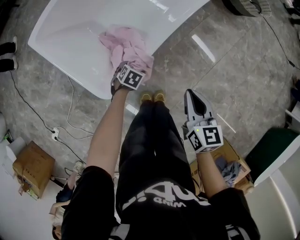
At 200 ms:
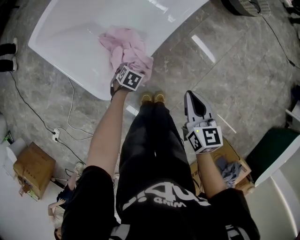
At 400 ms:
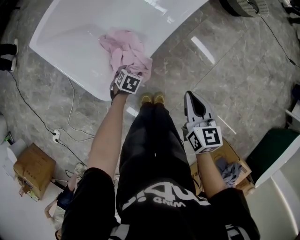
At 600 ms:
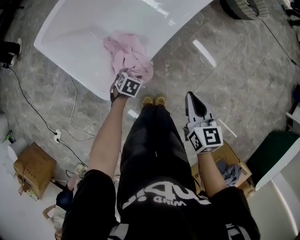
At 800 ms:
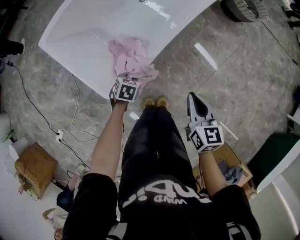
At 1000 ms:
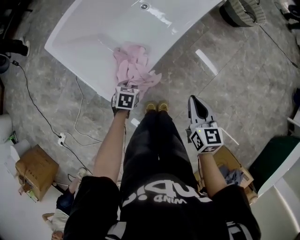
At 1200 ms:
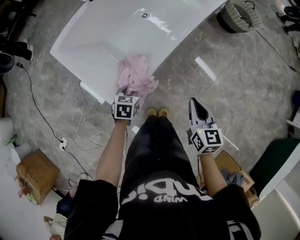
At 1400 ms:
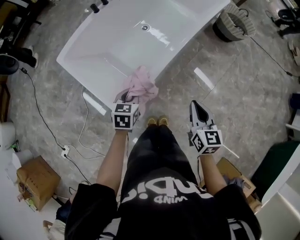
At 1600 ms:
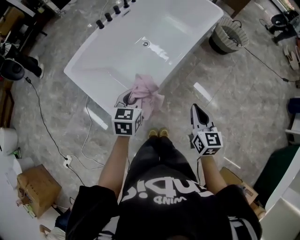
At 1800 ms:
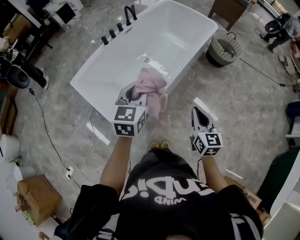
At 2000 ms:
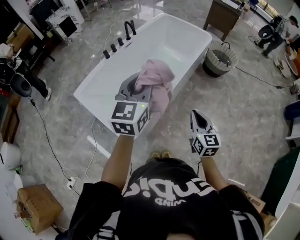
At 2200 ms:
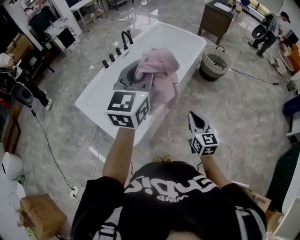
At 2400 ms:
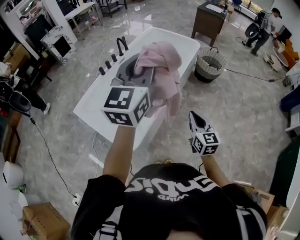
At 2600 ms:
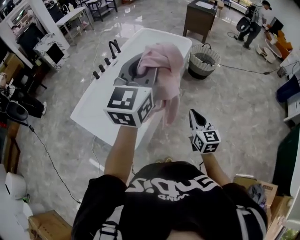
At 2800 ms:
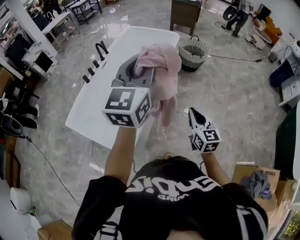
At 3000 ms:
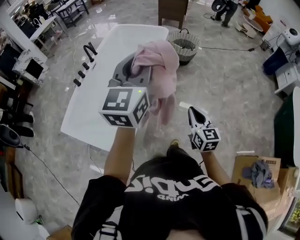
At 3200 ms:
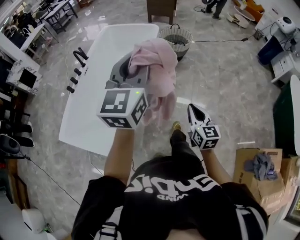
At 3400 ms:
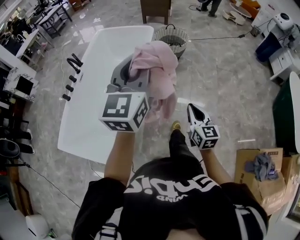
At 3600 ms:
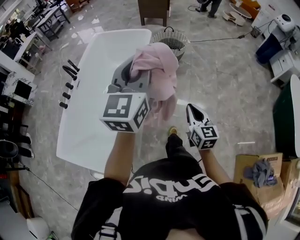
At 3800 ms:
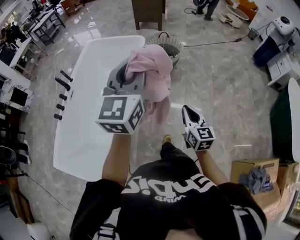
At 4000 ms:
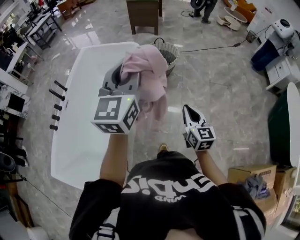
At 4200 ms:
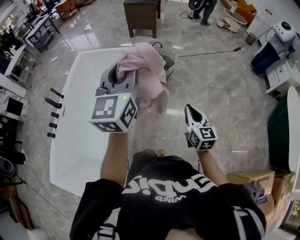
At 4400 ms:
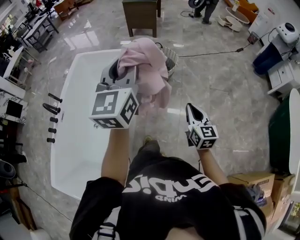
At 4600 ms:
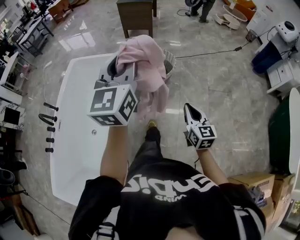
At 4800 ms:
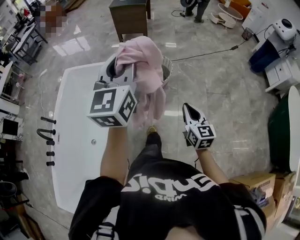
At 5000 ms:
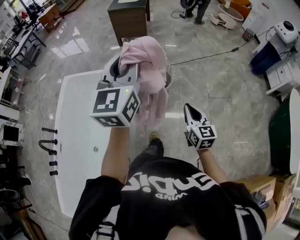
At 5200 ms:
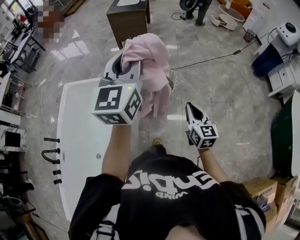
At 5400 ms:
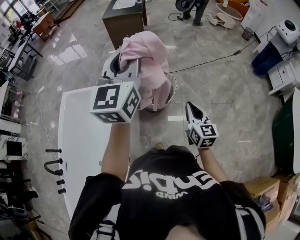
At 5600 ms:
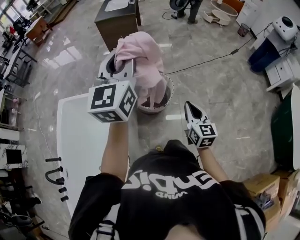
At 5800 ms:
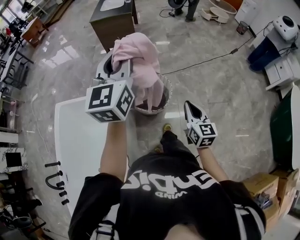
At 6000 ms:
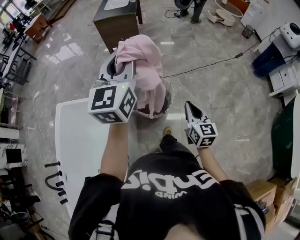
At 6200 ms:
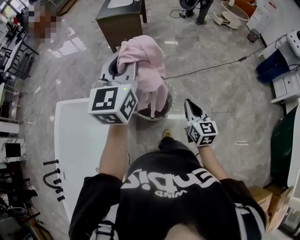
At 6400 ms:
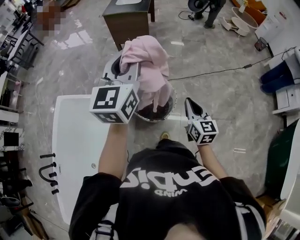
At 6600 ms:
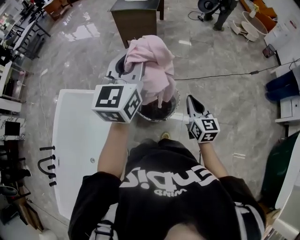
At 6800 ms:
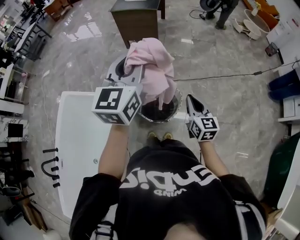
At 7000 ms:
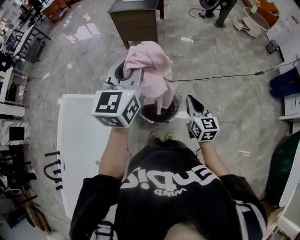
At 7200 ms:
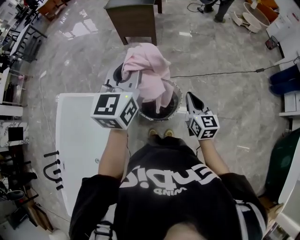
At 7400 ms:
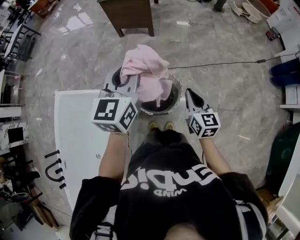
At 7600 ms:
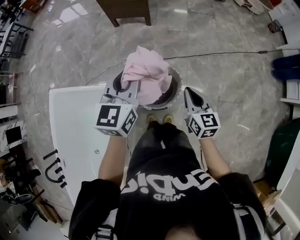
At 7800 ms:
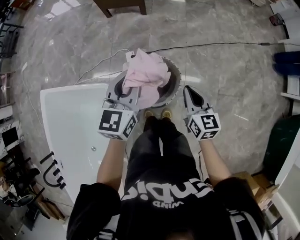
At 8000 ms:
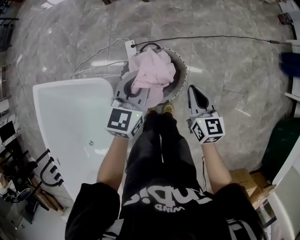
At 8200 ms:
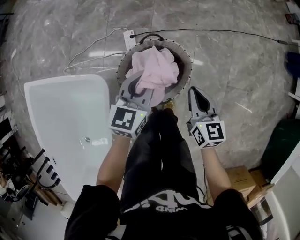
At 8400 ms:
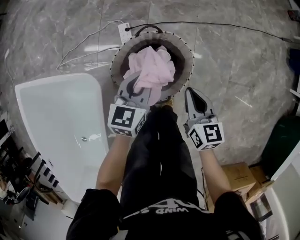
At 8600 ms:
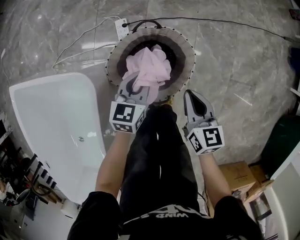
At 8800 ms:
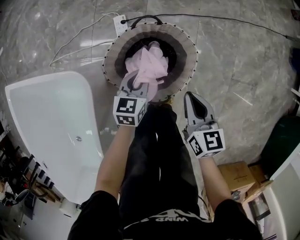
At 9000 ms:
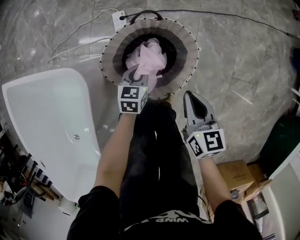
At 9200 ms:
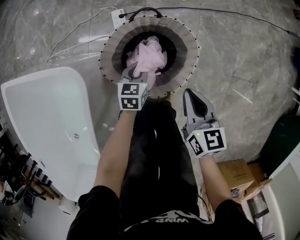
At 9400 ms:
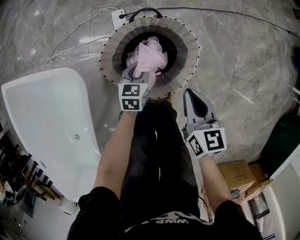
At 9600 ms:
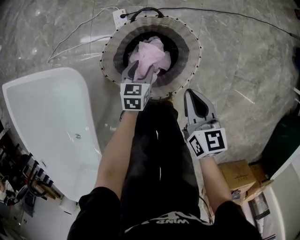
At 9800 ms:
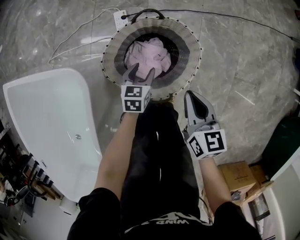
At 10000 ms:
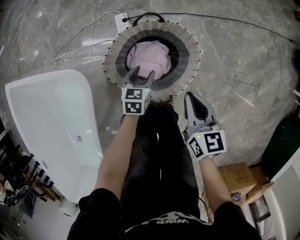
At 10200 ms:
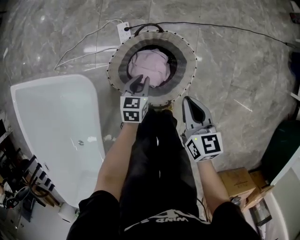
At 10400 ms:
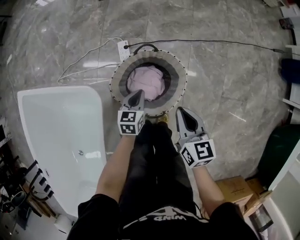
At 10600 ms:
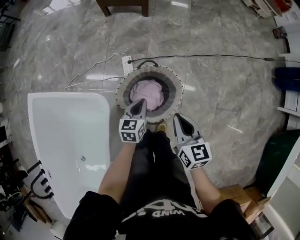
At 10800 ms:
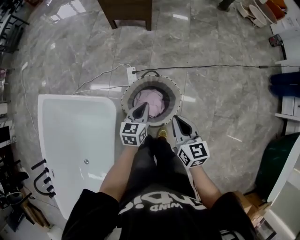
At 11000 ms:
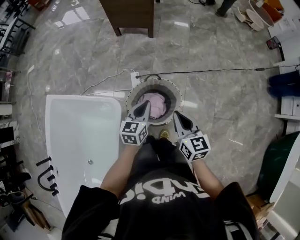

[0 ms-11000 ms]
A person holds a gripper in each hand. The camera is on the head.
0 ms to 1600 ms: The right gripper shifts some 15 cm upward. The left gripper heads upward, covering roughly 40 cm, points its fingers approximately 40 degrees further upward, and closes.
1600 ms to 3200 ms: The left gripper shifts about 35 cm upward, and points its fingers roughly 40 degrees further upward. The right gripper moves some 15 cm, and changes its angle by some 30 degrees.
3200 ms to 4800 ms: The two grippers travel together, forward, about 60 cm.
4800 ms to 6200 ms: The grippers both shift forward by some 40 cm.
6200 ms to 7800 ms: The left gripper travels downward and forward by some 30 cm, and changes its angle by roughly 20 degrees; the right gripper heads forward and downward, covering approximately 20 cm.
7800 ms to 9400 ms: The left gripper shifts some 50 cm downward, and rotates roughly 30 degrees. The right gripper goes roughly 25 cm downward.
9400 ms to 11000 ms: Both grippers move upward, about 35 cm. The left gripper opens, then closes once more.

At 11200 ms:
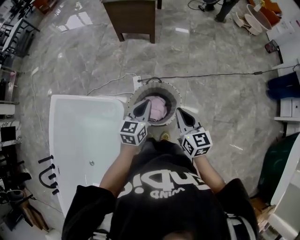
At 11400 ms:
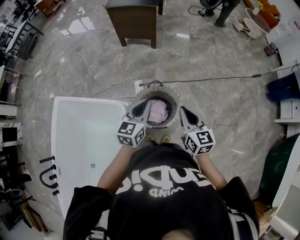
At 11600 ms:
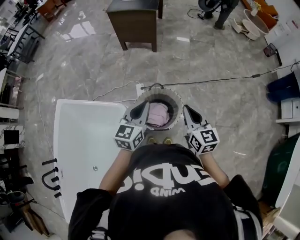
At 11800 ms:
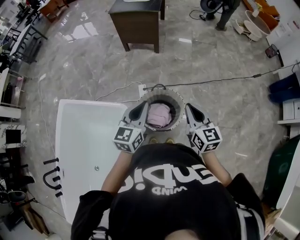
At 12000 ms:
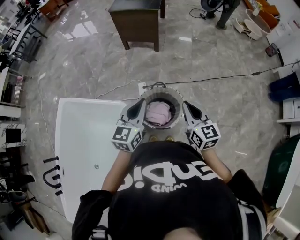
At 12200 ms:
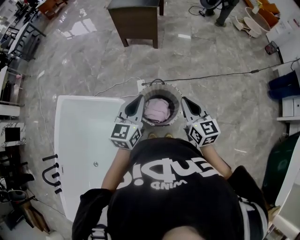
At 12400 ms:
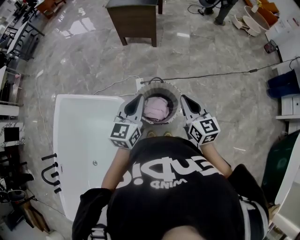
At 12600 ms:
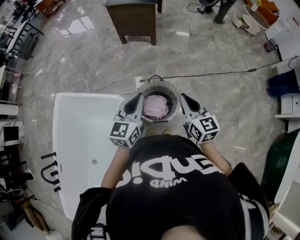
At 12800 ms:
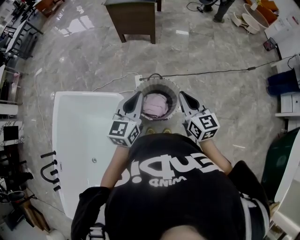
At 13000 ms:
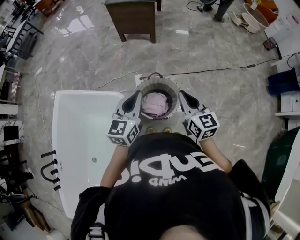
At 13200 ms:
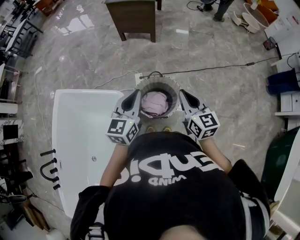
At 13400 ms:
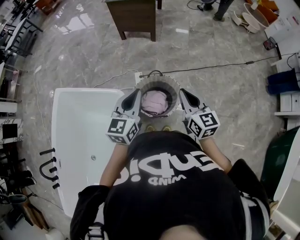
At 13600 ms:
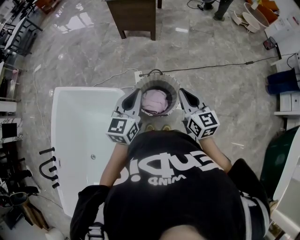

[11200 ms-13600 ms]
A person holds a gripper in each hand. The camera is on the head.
11200 ms to 12400 ms: The right gripper goes about 5 cm upward; the left gripper goes about 10 cm upward.
12400 ms to 13600 ms: The grippers move only a little.

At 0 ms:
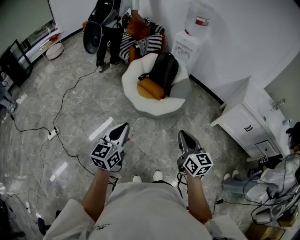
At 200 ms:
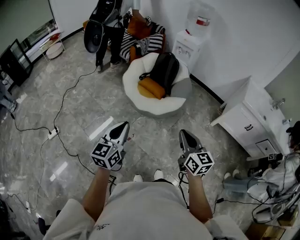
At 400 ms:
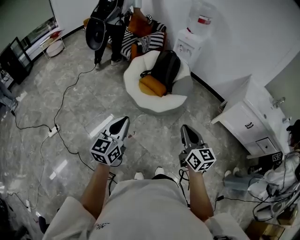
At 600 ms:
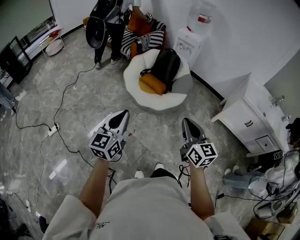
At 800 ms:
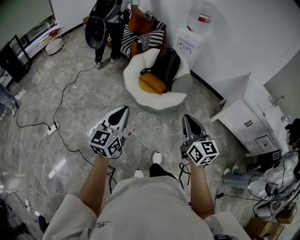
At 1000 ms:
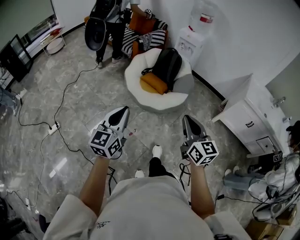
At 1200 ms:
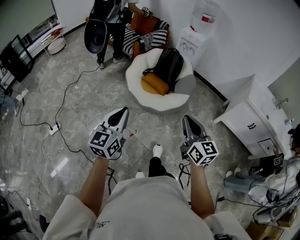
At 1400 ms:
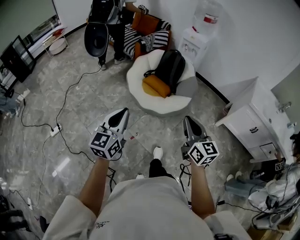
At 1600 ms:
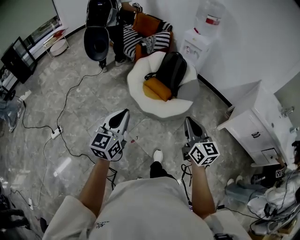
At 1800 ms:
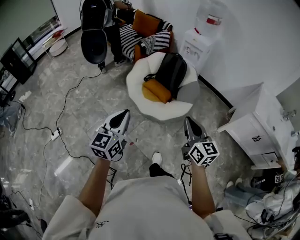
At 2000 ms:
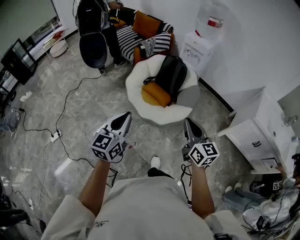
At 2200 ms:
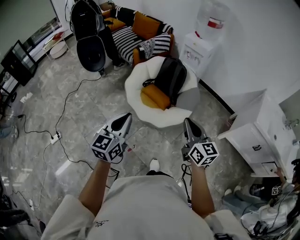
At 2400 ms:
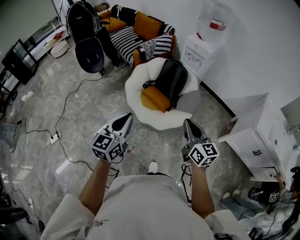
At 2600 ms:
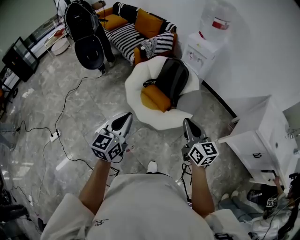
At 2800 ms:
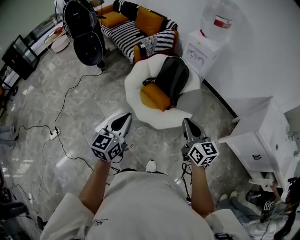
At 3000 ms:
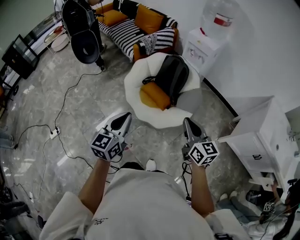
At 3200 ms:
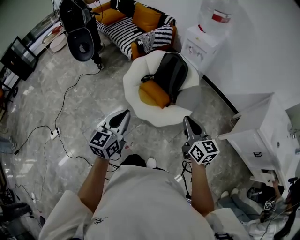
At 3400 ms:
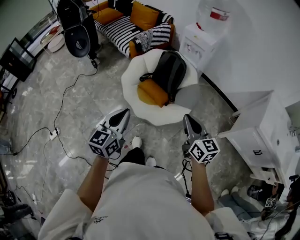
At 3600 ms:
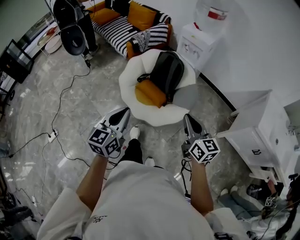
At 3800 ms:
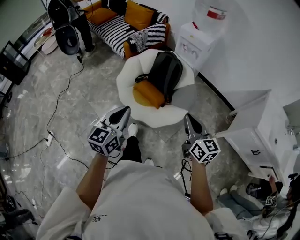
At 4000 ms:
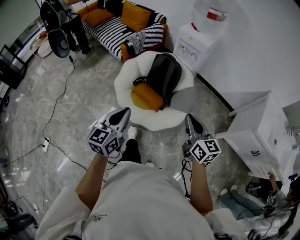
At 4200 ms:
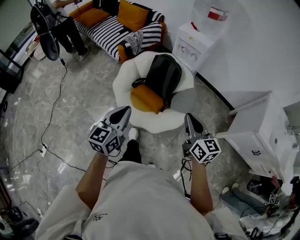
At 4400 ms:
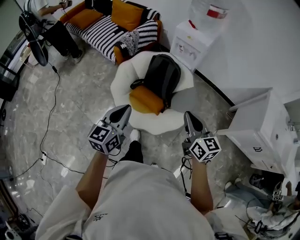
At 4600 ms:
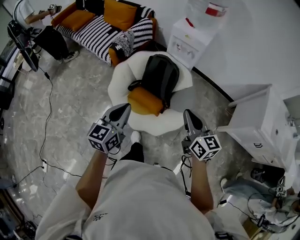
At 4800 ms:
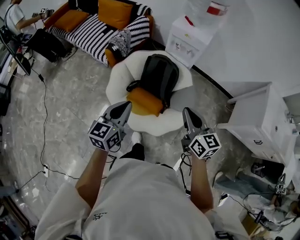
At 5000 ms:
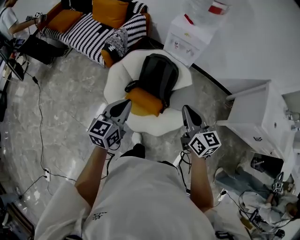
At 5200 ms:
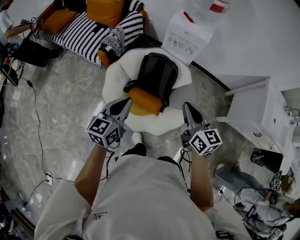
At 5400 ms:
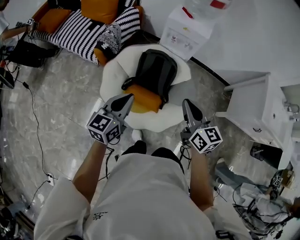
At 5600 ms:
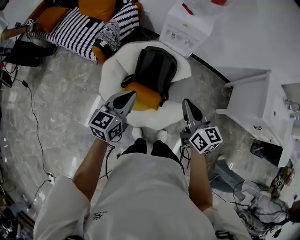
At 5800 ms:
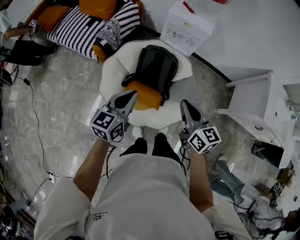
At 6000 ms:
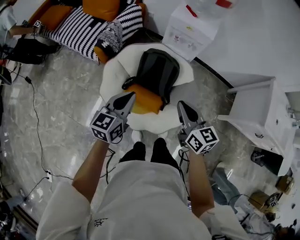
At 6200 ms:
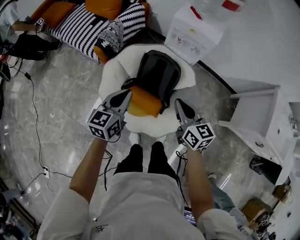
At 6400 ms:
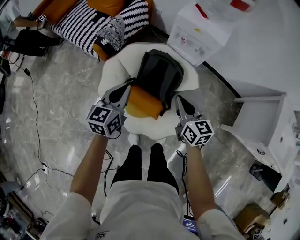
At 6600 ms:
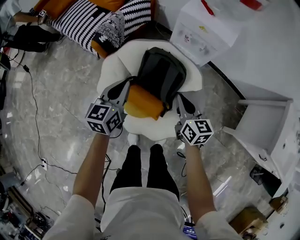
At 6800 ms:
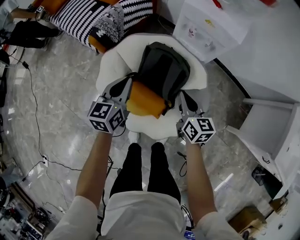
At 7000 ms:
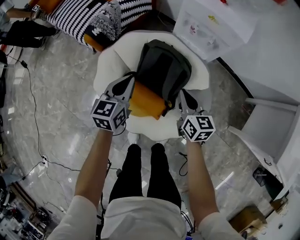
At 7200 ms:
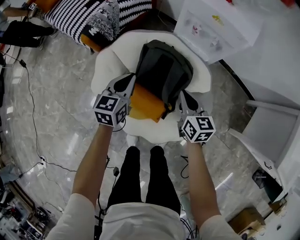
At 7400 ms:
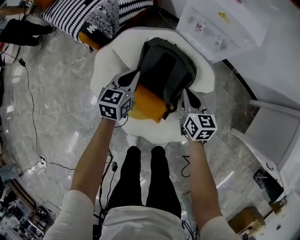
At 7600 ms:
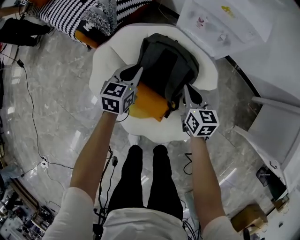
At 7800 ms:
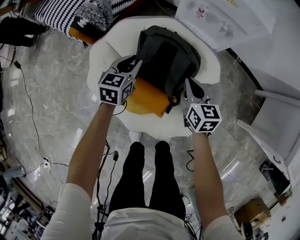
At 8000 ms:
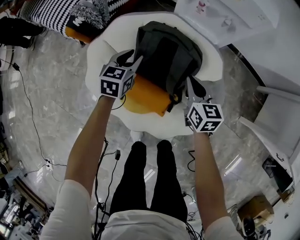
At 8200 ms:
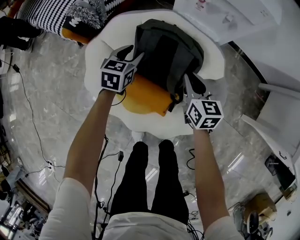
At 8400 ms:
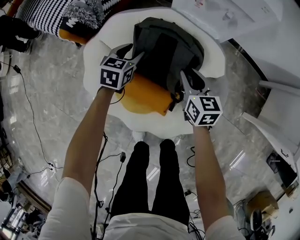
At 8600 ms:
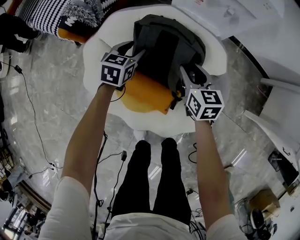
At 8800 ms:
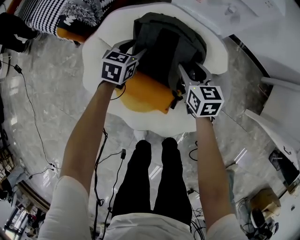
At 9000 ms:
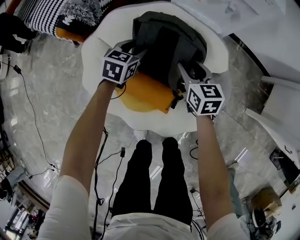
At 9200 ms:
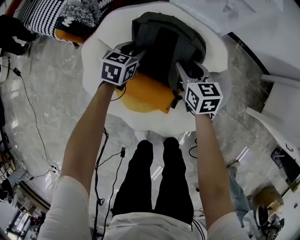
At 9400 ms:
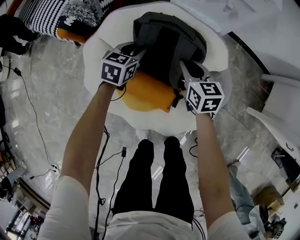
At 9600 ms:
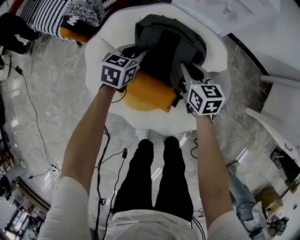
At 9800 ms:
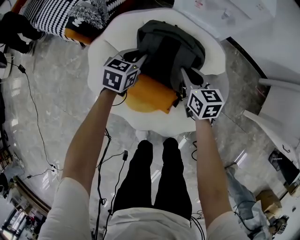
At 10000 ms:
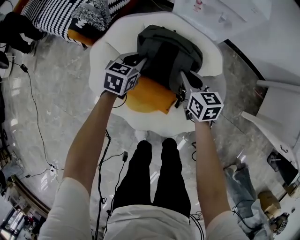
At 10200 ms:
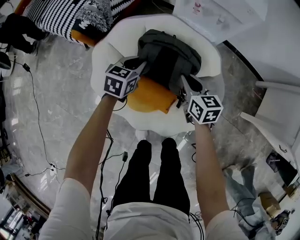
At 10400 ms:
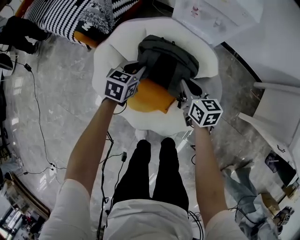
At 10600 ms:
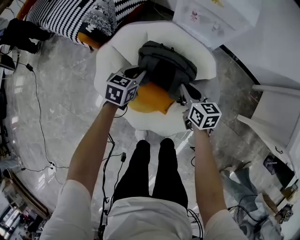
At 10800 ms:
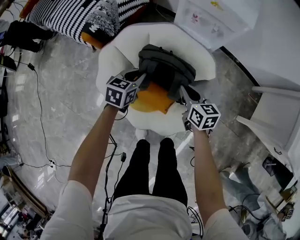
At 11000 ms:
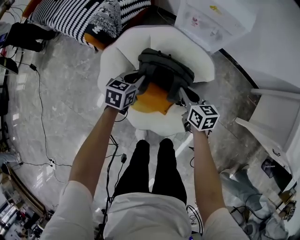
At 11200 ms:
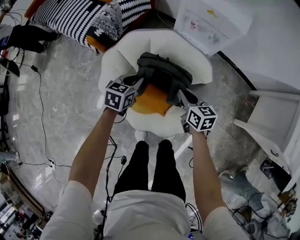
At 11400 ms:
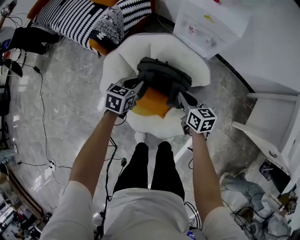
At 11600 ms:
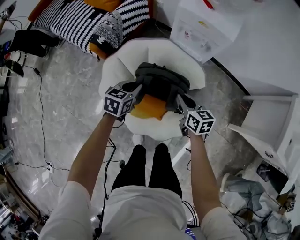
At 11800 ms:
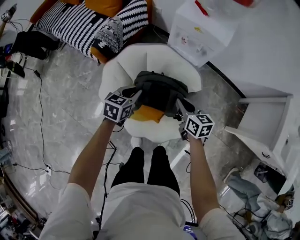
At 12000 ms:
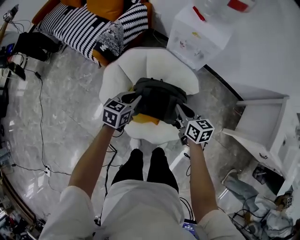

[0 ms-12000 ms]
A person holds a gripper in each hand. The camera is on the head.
0 ms to 1600 ms: Both grippers travel together forward, about 10 cm.
1600 ms to 3000 ms: The grippers both shift forward and to the right by some 20 cm.
3000 ms to 4400 ms: Both grippers move forward, some 20 cm.
4400 ms to 6000 ms: The left gripper is displaced forward by about 20 cm. The right gripper is displaced forward and to the left by some 15 cm.
6000 ms to 7600 ms: Both grippers travel together downward and forward, roughly 35 cm.
7600 ms to 9000 ms: The left gripper shifts approximately 10 cm downward, and opens up; the right gripper goes about 5 cm downward, and opens its fingers.
9000 ms to 10400 ms: Both grippers travel together upward and backward, some 10 cm. The left gripper closes, while the right gripper closes up.
10400 ms to 12000 ms: The grippers both shift upward and backward by some 15 cm.
